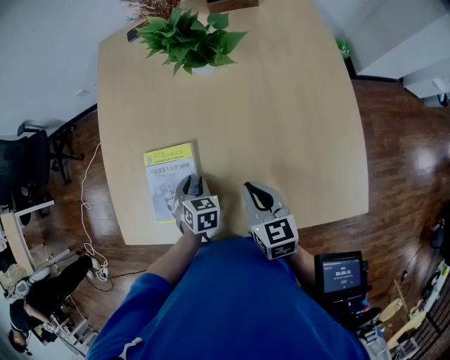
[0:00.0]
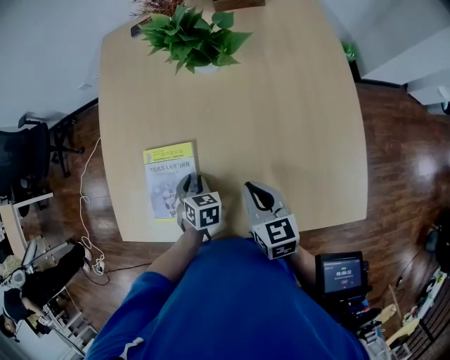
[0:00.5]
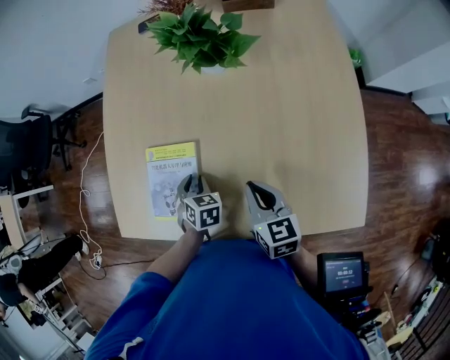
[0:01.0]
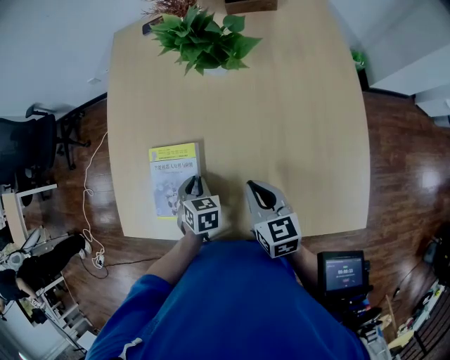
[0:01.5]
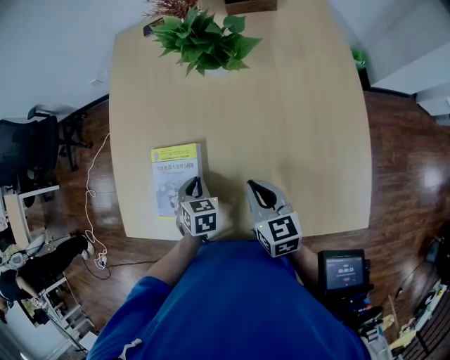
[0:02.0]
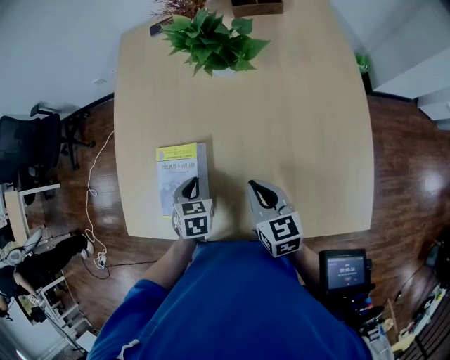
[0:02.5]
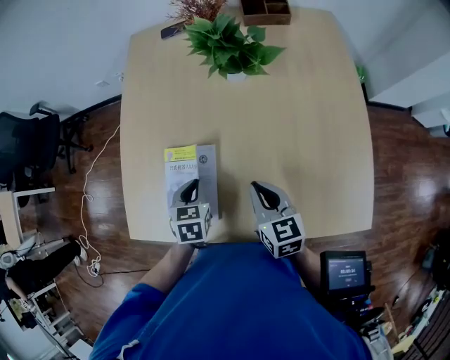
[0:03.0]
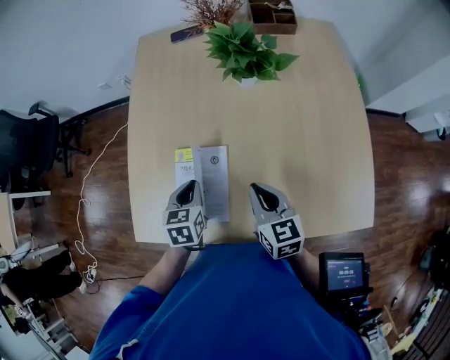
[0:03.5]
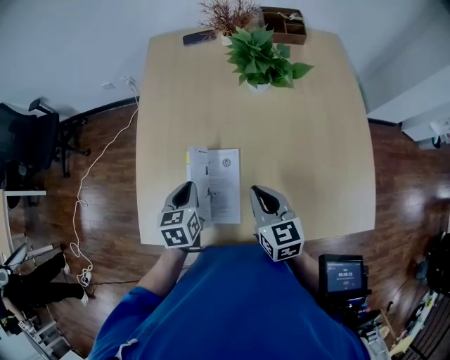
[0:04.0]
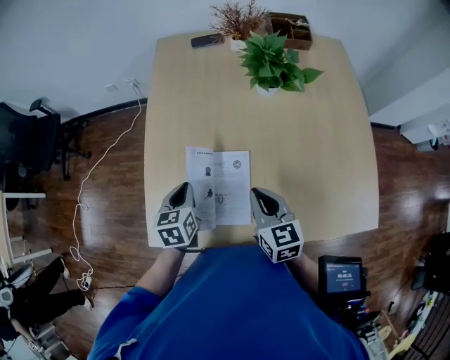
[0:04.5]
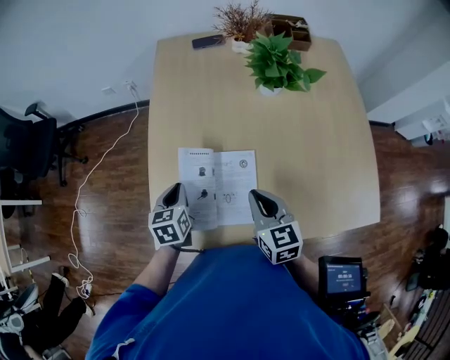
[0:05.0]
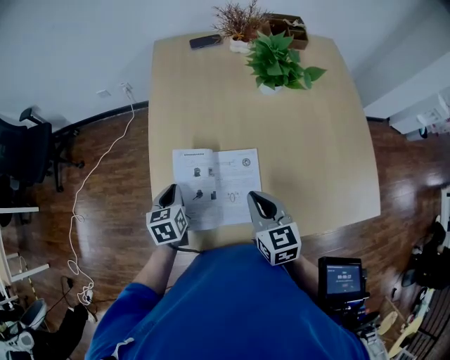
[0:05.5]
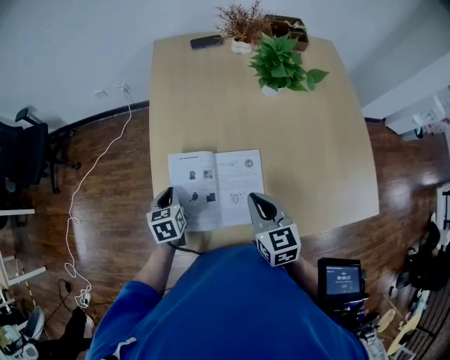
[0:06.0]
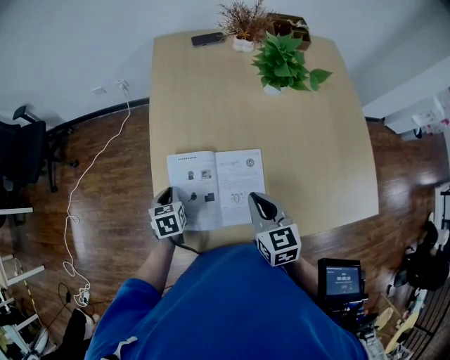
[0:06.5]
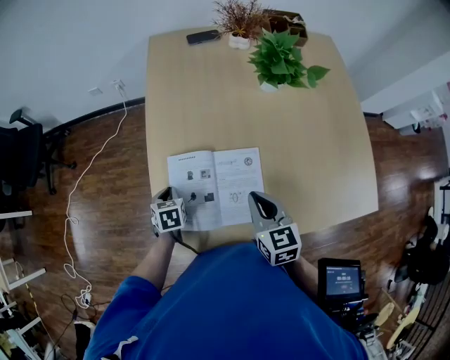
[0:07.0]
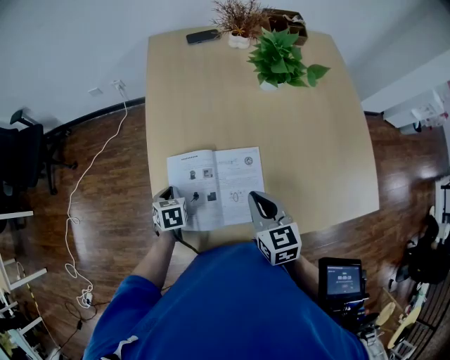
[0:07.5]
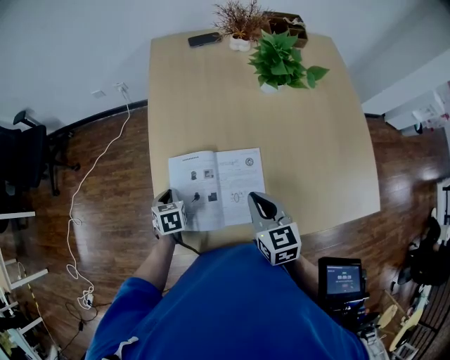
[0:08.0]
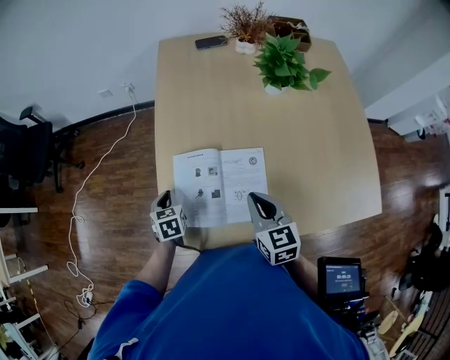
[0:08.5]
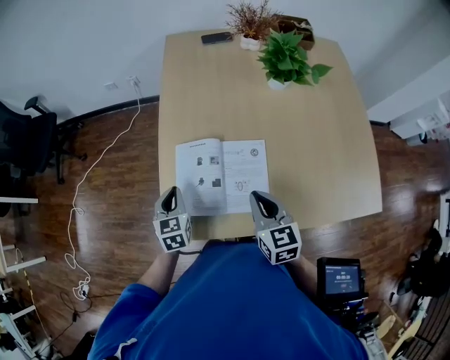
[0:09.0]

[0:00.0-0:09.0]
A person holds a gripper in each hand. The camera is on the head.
0:00.0 to 0:02.0: The left gripper closes up.
0:02.0 to 0:04.5: The right gripper moves to the left, about 15 cm, while the left gripper moves to the left and upward, some 20 cm, and turns by approximately 30 degrees.
0:04.5 to 0:07.0: The left gripper moves to the left and downward, approximately 15 cm, and changes its angle by roughly 20 degrees, while the right gripper travels to the left by about 5 cm.
0:07.0 to 0:09.0: The left gripper is displaced upward and backward by roughly 10 cm, and rotates about 20 degrees.

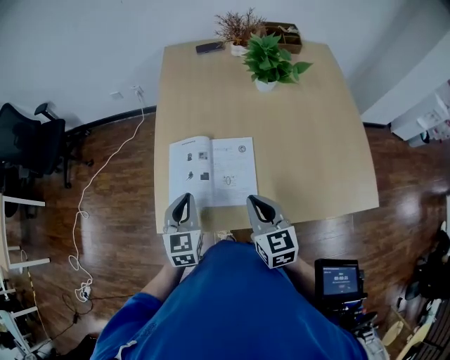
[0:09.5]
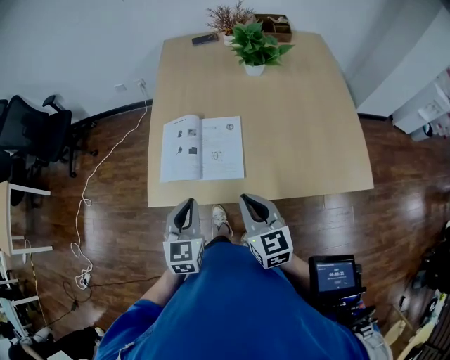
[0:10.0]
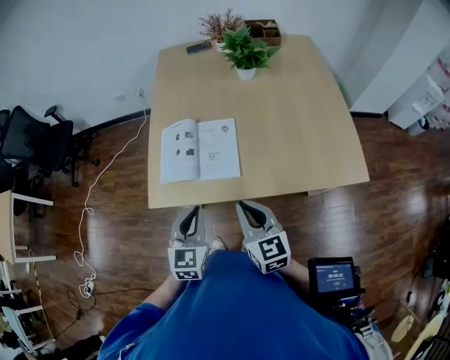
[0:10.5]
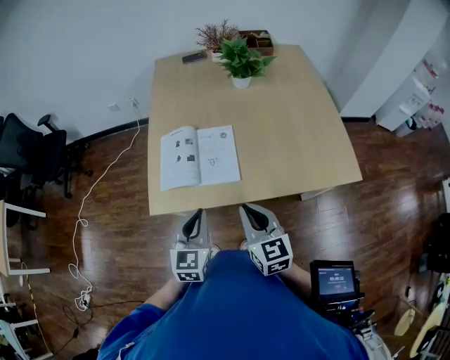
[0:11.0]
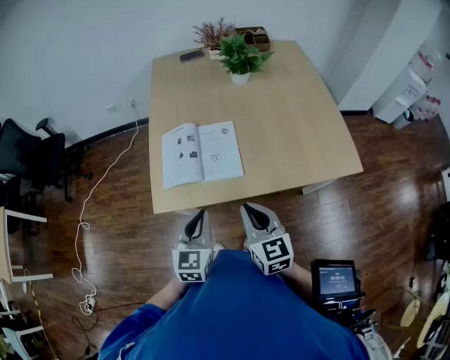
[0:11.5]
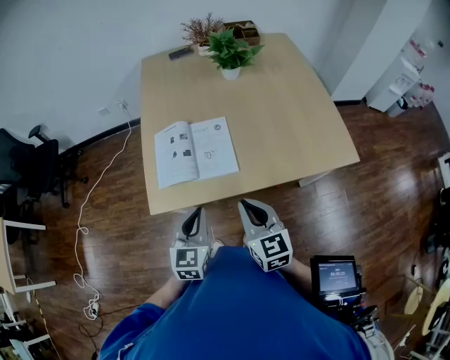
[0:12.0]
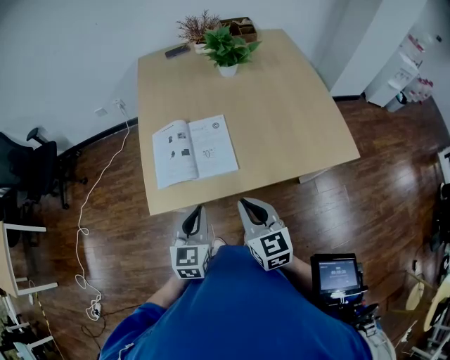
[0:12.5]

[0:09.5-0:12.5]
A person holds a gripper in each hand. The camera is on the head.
0:09.5 to 0:11.0: The grippers both shift backward by approximately 15 cm.
0:11.0 to 0:12.5: The grippers stay close to where they were, moving slightly.

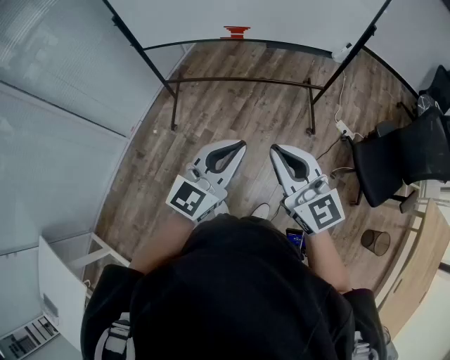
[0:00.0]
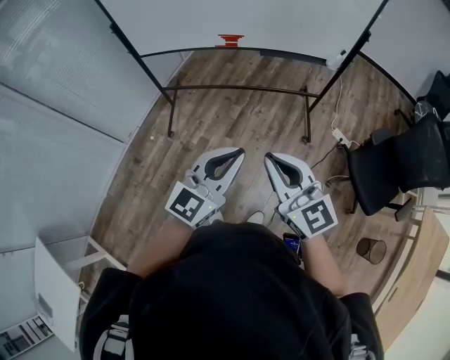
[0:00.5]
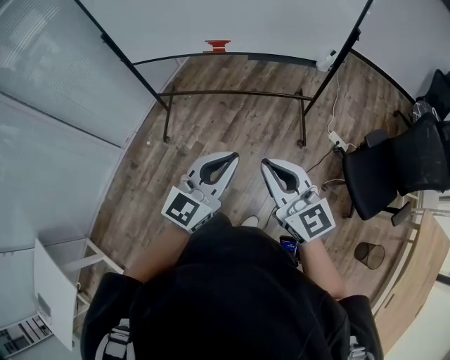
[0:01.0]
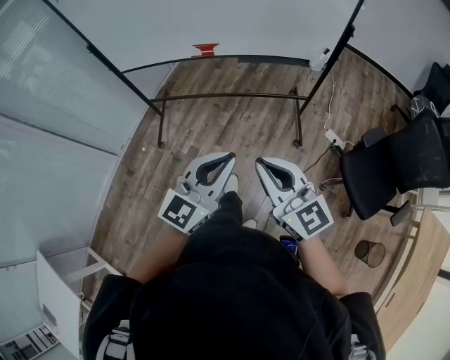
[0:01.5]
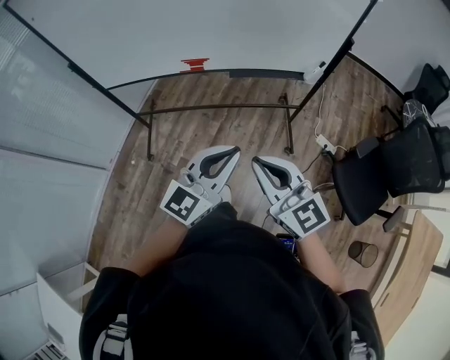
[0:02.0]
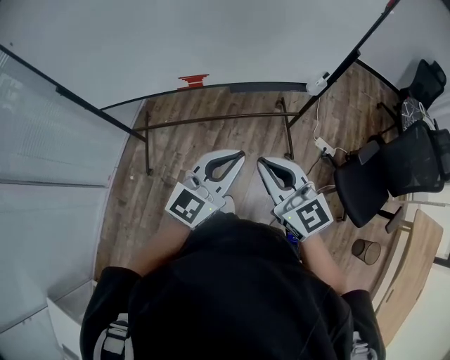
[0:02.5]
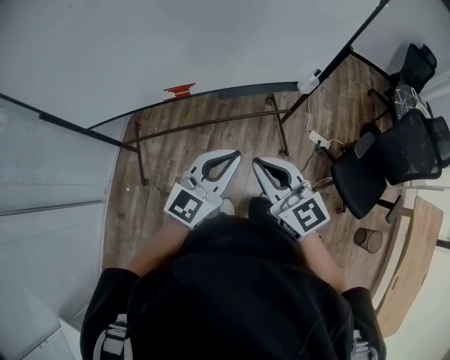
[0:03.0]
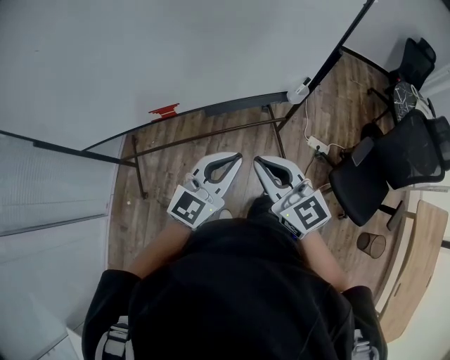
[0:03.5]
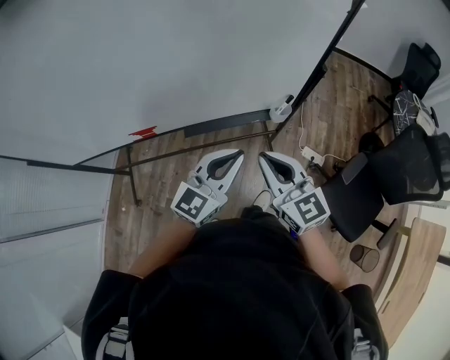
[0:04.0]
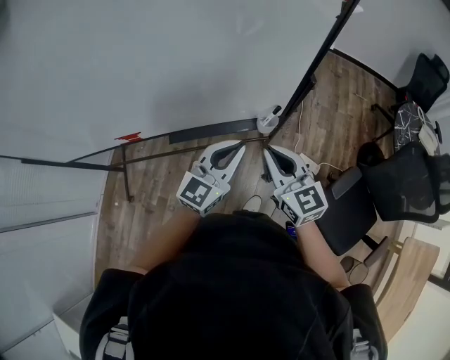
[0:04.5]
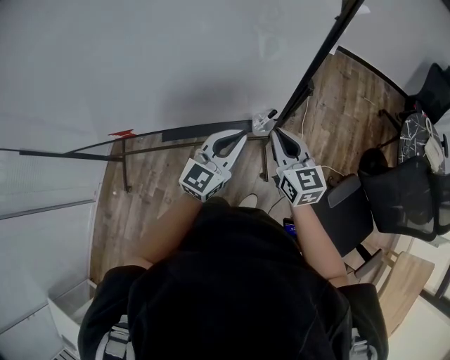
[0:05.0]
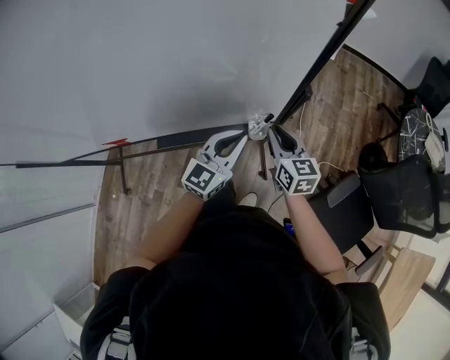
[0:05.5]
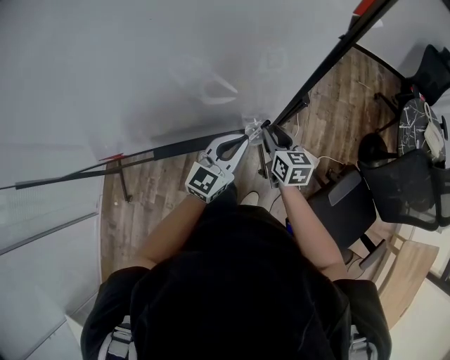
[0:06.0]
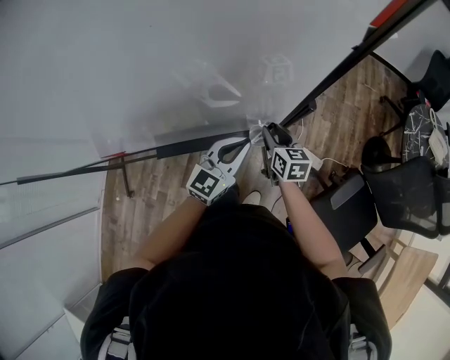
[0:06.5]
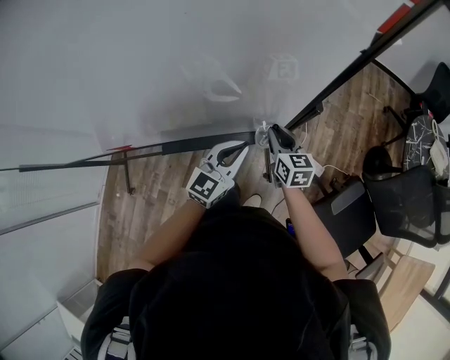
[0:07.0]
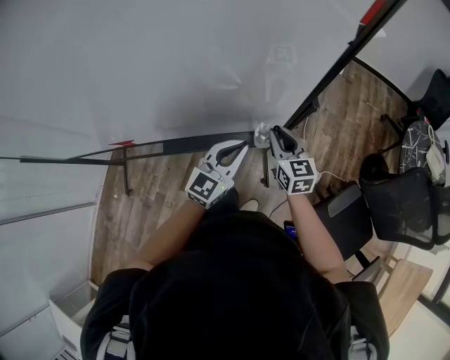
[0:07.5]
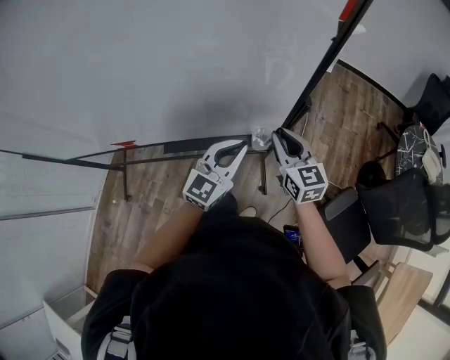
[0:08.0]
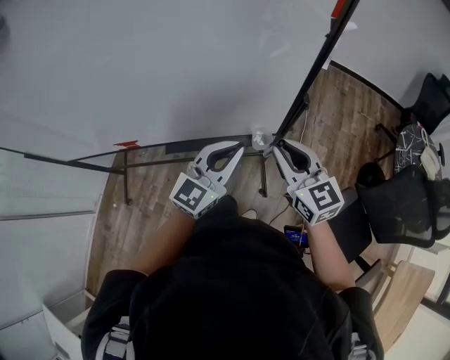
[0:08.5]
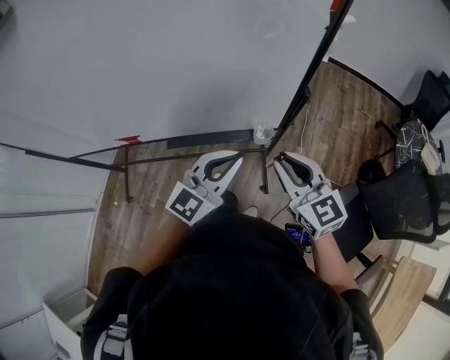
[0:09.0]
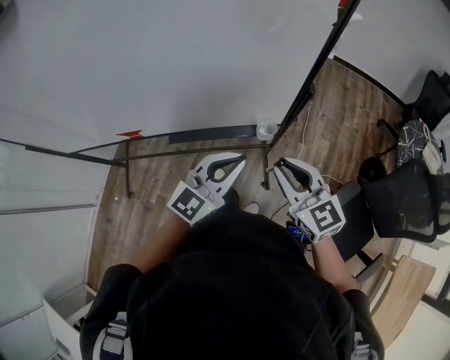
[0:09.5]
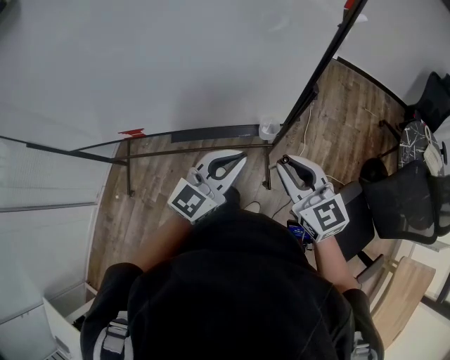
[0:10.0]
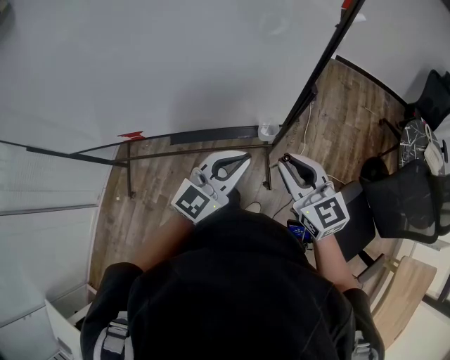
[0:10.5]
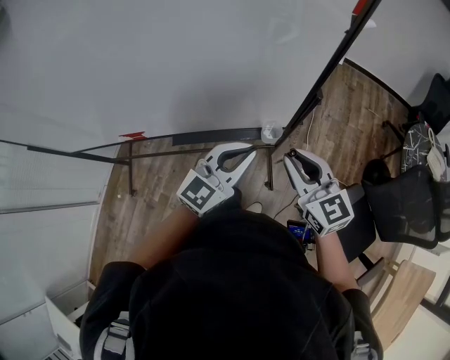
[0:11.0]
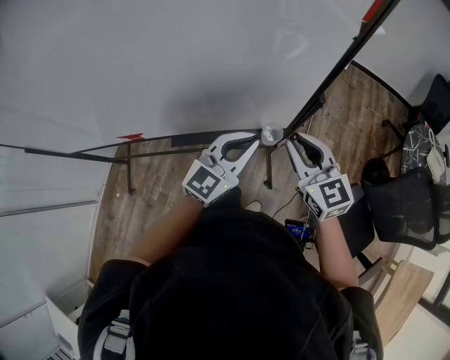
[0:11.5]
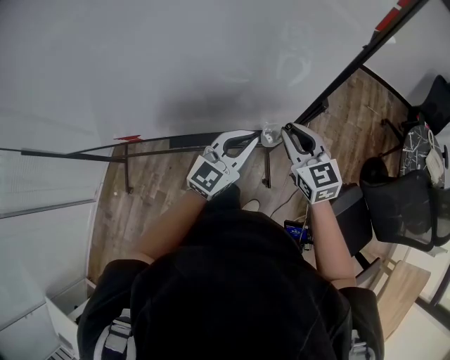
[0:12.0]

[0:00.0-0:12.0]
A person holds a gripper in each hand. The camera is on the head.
0:00.0 to 0:02.0: The two grippers go some 20 cm forward and to the right.
0:02.0 to 0:04.0: The grippers both shift forward and to the right by approximately 35 cm.
0:04.0 to 0:06.0: The right gripper shifts roughly 35 cm forward, downward and to the right, changes its angle by some 30 degrees, and opens up. The left gripper moves forward, to the right and downward, roughly 25 cm.
0:06.0 to 0:08.0: The right gripper moves upward, approximately 15 cm, and turns by roughly 20 degrees. Meanwhile the left gripper travels upward by roughly 5 cm.
0:08.0 to 0:10.0: The right gripper goes roughly 15 cm backward and upward; the left gripper moves backward and upward, approximately 10 cm.
0:10.0 to 0:12.0: The left gripper goes approximately 10 cm forward and downward; the right gripper is displaced forward by about 15 cm.

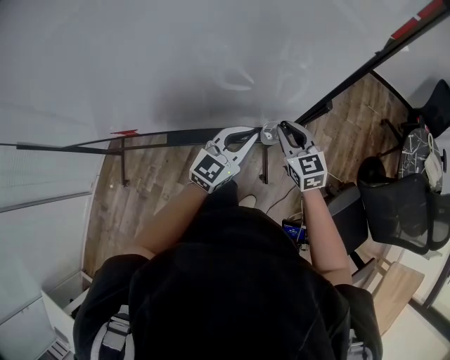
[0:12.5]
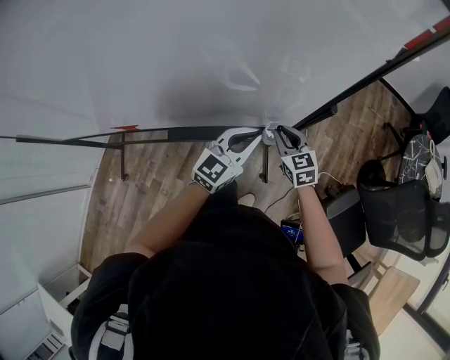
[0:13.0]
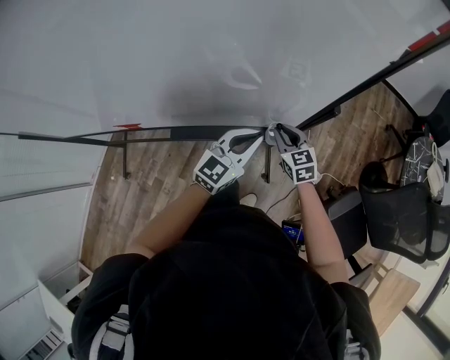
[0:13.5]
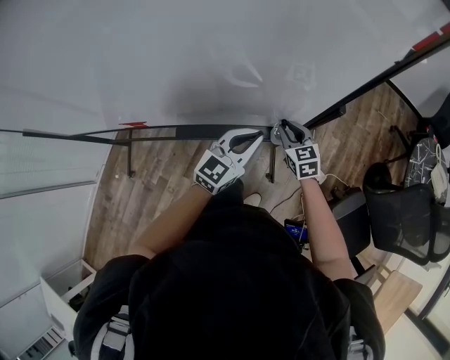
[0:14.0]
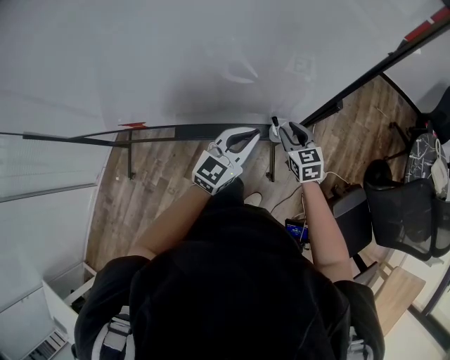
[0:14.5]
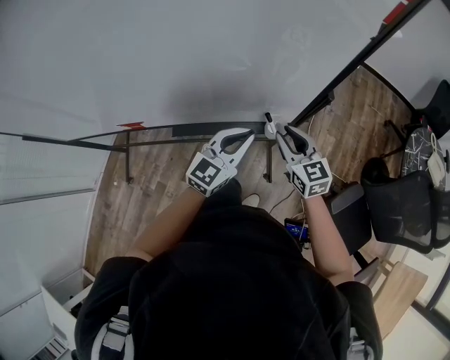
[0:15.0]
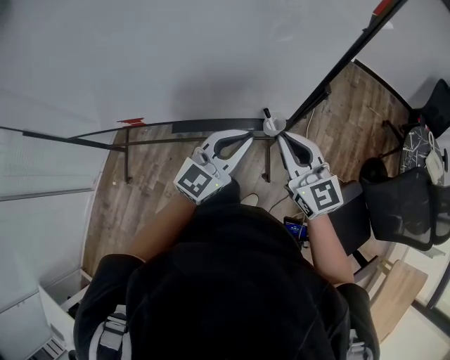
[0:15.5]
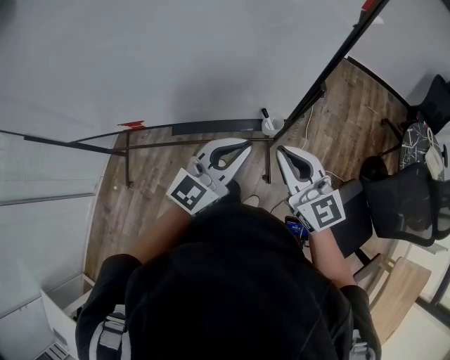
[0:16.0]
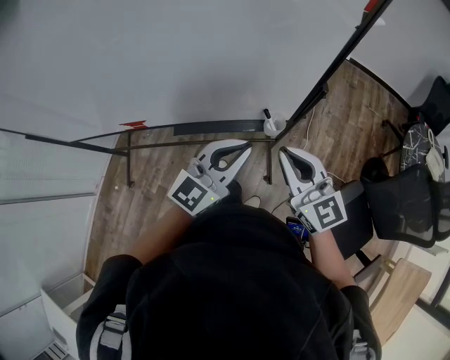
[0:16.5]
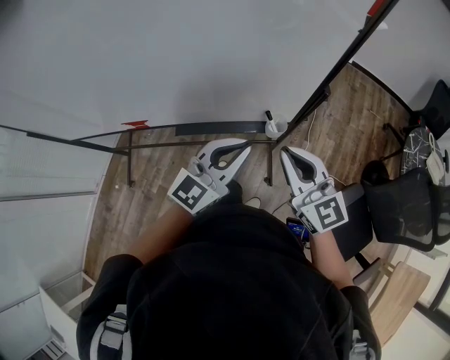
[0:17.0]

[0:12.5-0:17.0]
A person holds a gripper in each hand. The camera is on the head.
0:12.5 to 0:14.5: The right gripper heads downward, covering roughly 10 cm.
0:14.5 to 0:17.0: The left gripper goes approximately 15 cm upward and backward. The right gripper moves upward and backward, some 30 cm, changes its angle by about 30 degrees, and closes.
